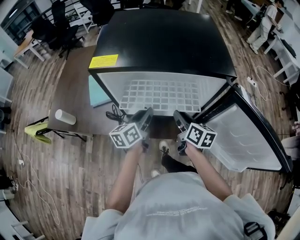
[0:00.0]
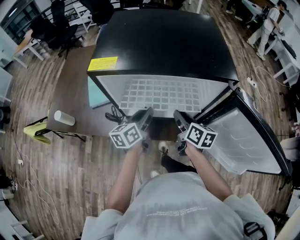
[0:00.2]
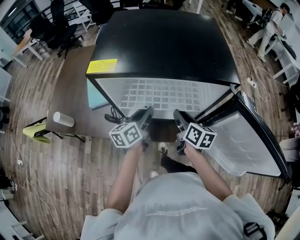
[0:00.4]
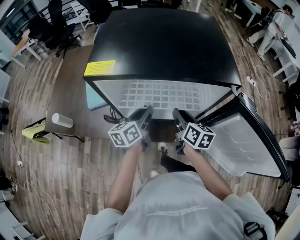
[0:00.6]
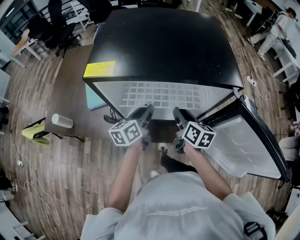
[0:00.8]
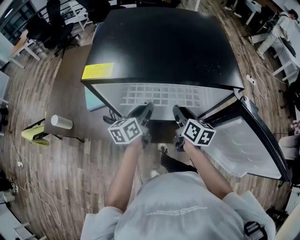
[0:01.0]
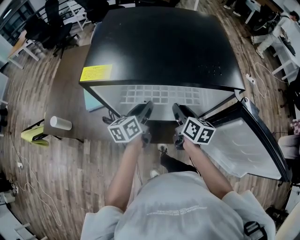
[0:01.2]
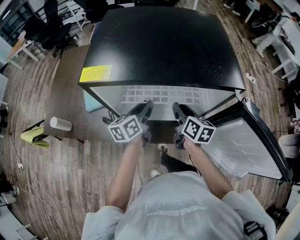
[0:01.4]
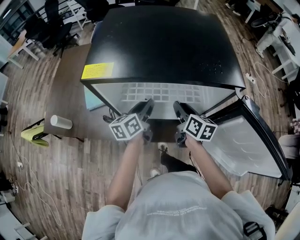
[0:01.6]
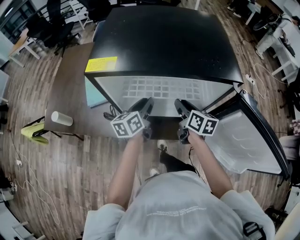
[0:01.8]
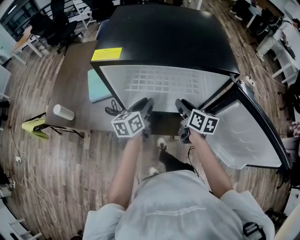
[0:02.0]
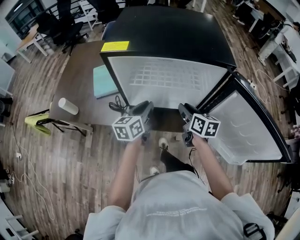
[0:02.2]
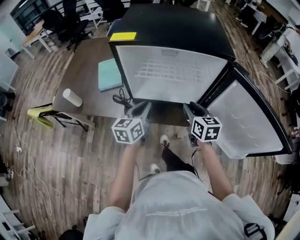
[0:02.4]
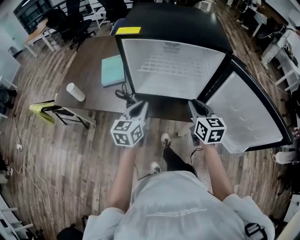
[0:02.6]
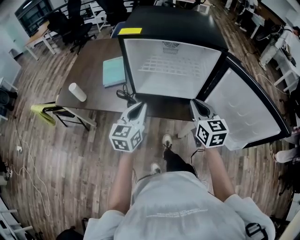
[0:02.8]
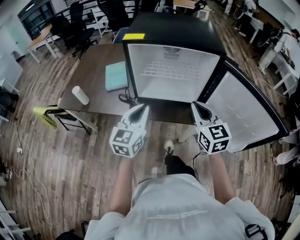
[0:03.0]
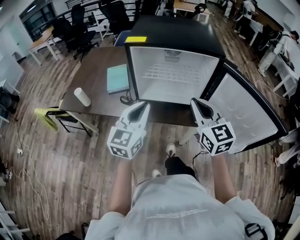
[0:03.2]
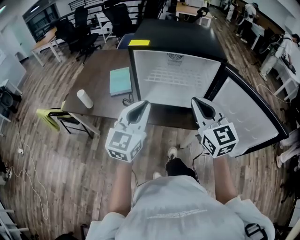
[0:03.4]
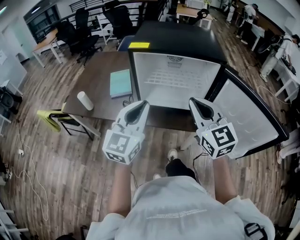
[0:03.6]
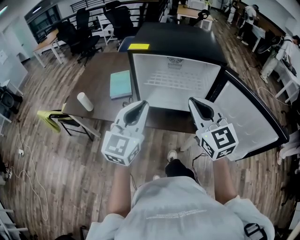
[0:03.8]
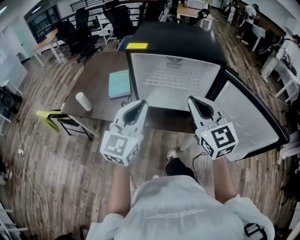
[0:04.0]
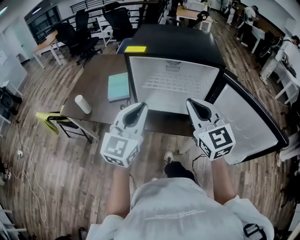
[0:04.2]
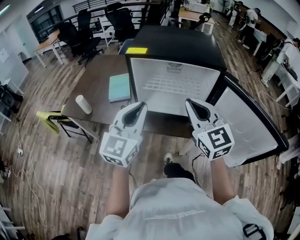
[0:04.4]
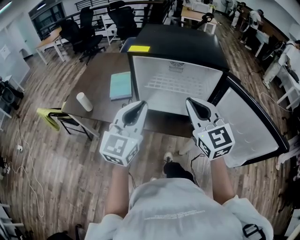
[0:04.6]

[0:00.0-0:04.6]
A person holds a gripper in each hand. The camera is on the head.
0.0 to 1.6 s: Both grippers travel together forward, some 5 cm.
1.6 to 3.0 s: The grippers both shift backward and upward by some 25 cm. The left gripper turns by some 40 degrees, and closes up, while the right gripper rolls counterclockwise, seen from behind, by some 40 degrees, and closes.
3.0 to 4.6 s: Both grippers travel together upward, approximately 10 cm.

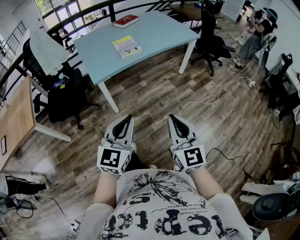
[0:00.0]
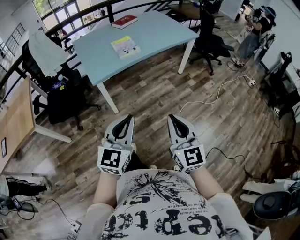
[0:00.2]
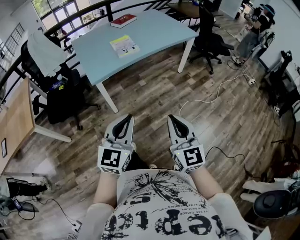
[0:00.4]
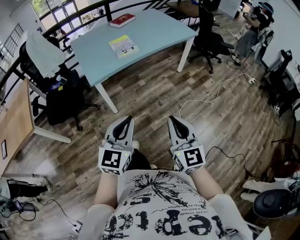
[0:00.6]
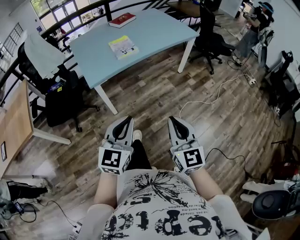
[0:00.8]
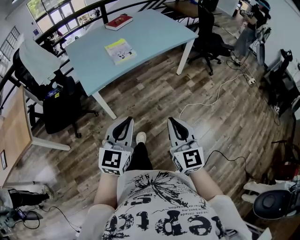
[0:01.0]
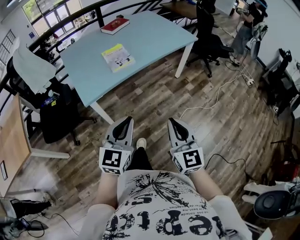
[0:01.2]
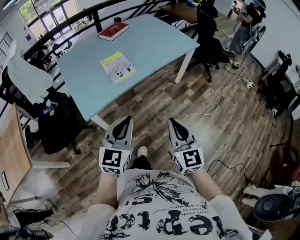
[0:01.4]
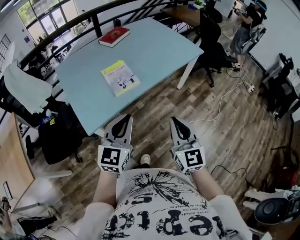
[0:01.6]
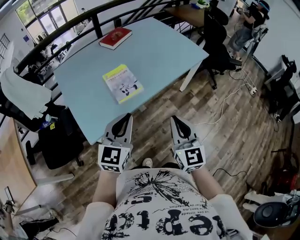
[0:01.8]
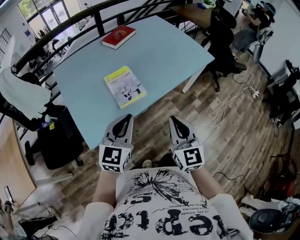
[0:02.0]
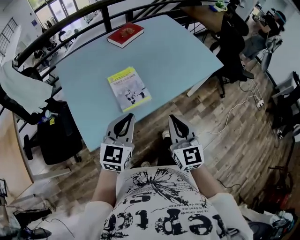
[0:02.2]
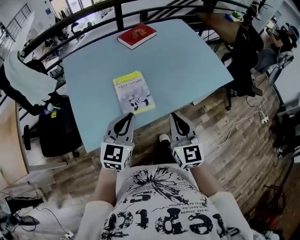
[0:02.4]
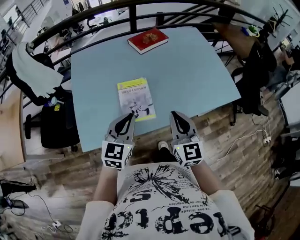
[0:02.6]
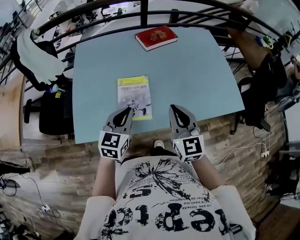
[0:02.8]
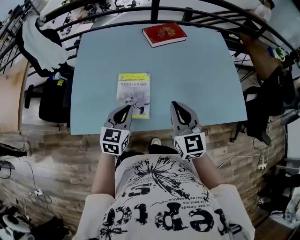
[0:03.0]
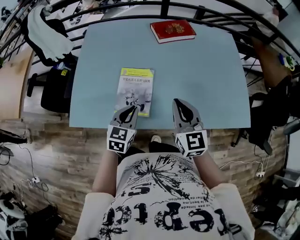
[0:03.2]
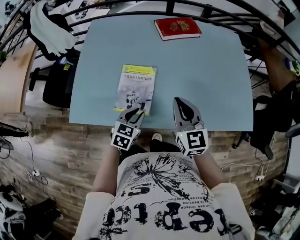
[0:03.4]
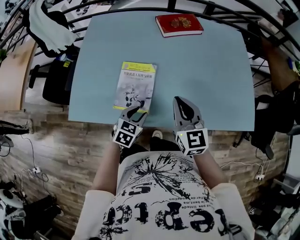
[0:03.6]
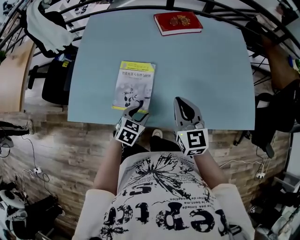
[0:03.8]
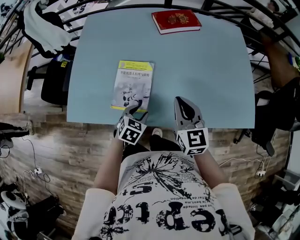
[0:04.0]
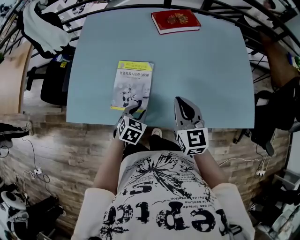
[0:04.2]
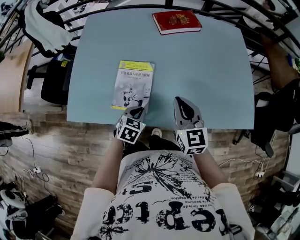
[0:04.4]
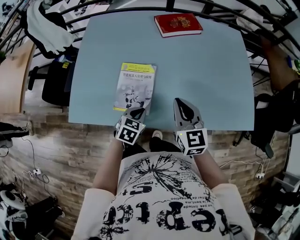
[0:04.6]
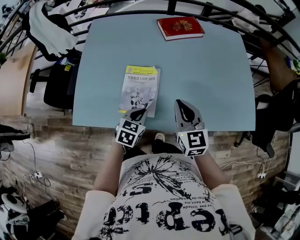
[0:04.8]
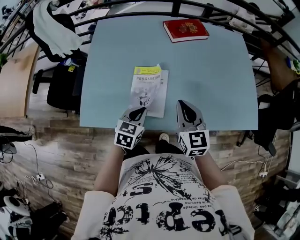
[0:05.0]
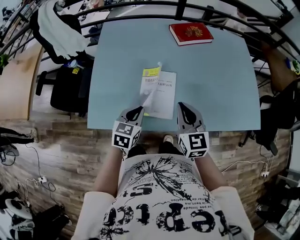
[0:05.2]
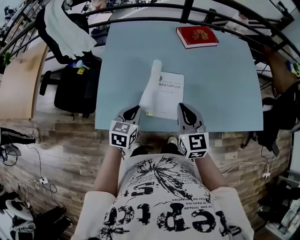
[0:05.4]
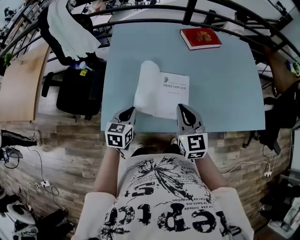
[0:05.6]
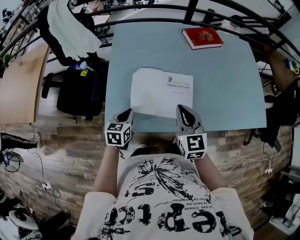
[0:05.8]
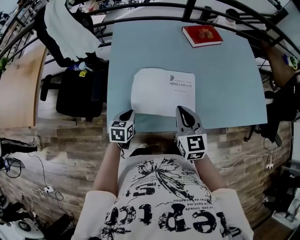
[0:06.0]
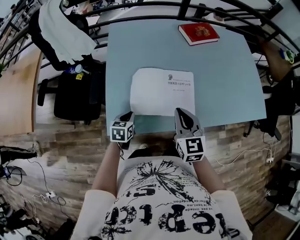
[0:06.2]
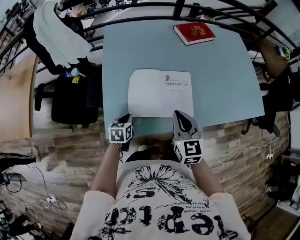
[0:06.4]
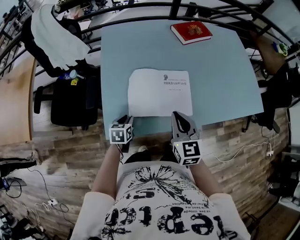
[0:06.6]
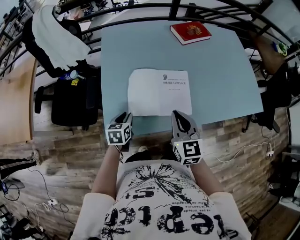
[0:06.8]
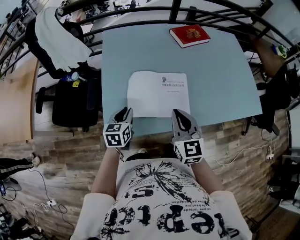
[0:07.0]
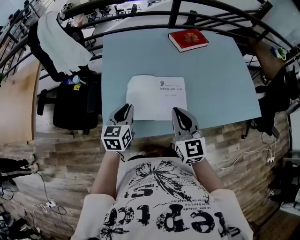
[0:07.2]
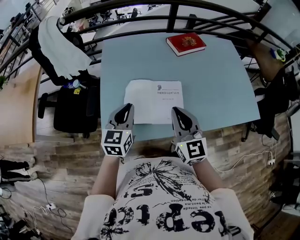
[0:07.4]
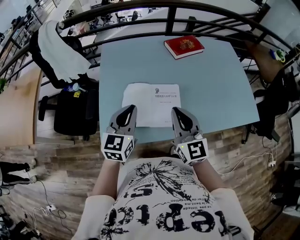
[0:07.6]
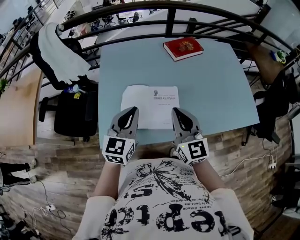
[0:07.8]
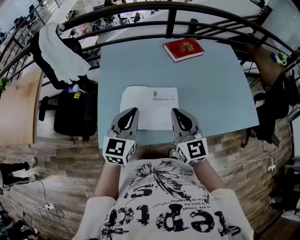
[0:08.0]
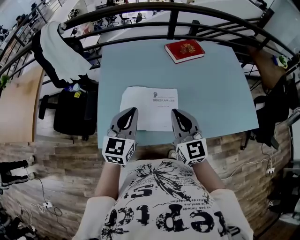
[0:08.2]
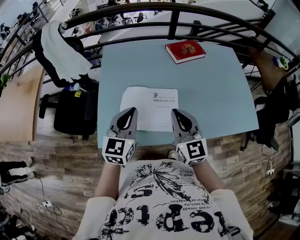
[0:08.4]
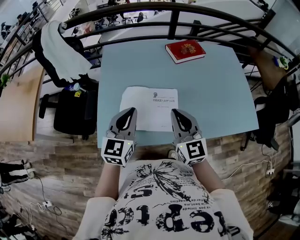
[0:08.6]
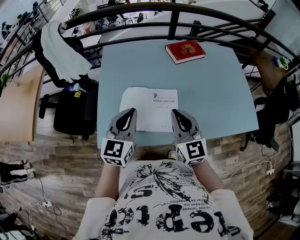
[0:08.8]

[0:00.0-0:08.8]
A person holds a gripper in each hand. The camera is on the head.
0.0 to 1.4 s: The grippers both shift forward by some 25 cm.
1.4 to 3.0 s: The pair of grippers is taken roughly 50 cm. The right gripper swivels roughly 30 degrees, while the left gripper swivels approximately 40 degrees.
3.0 to 4.4 s: The left gripper shifts approximately 15 cm downward and to the right, swivels some 30 degrees, and opens and closes again. The right gripper shifts approximately 5 cm downward.
4.4 to 5.8 s: Both grippers travel together to the left, approximately 30 cm. The left gripper turns by approximately 20 degrees.
5.8 to 7.4 s: The right gripper goes some 5 cm upward. The left gripper goes some 15 cm upward, and turns by approximately 20 degrees.
7.4 to 8.8 s: The left gripper is displaced to the right and upward by roughly 10 cm.

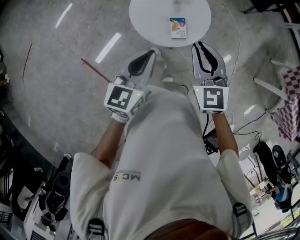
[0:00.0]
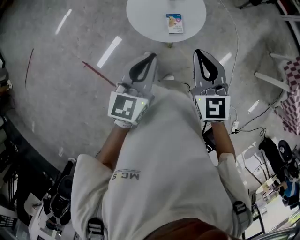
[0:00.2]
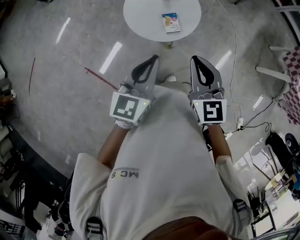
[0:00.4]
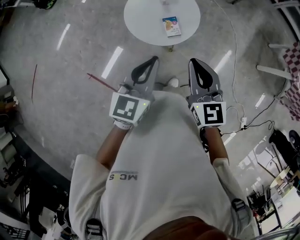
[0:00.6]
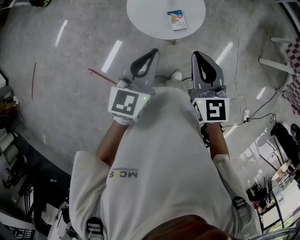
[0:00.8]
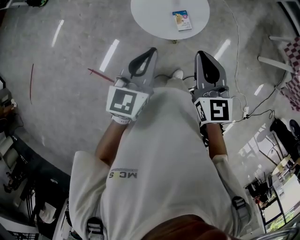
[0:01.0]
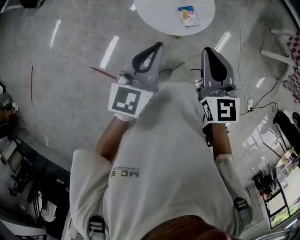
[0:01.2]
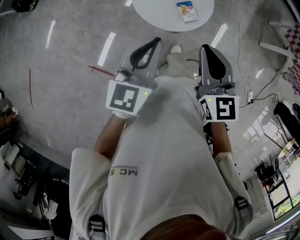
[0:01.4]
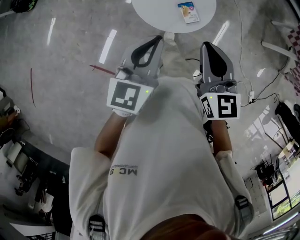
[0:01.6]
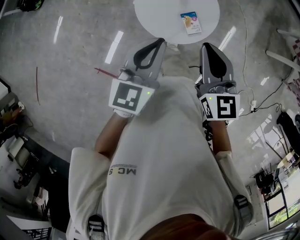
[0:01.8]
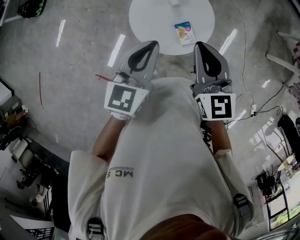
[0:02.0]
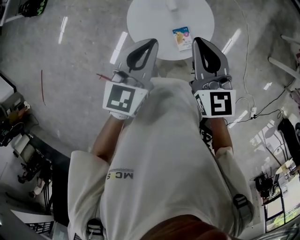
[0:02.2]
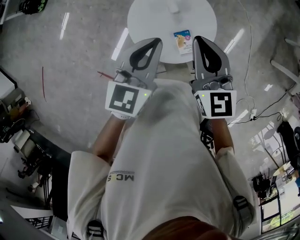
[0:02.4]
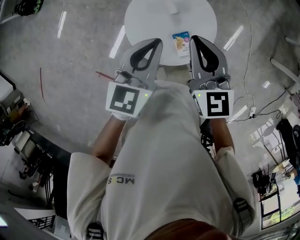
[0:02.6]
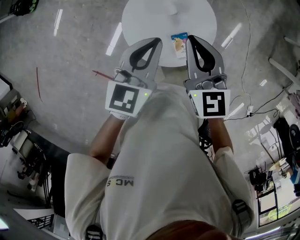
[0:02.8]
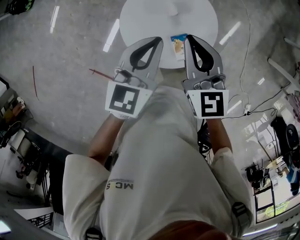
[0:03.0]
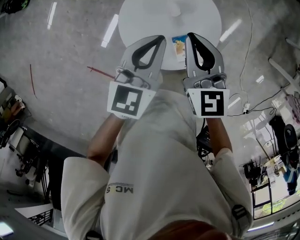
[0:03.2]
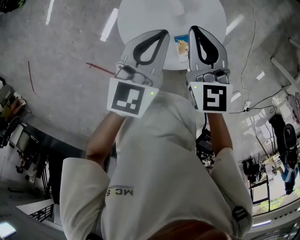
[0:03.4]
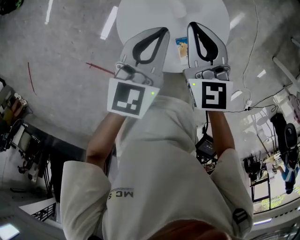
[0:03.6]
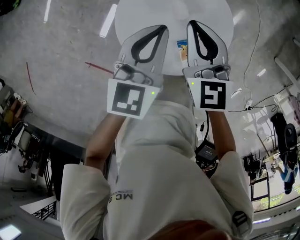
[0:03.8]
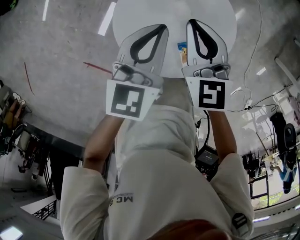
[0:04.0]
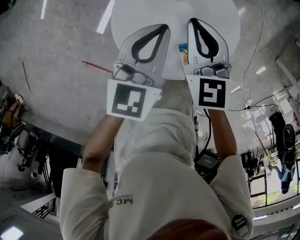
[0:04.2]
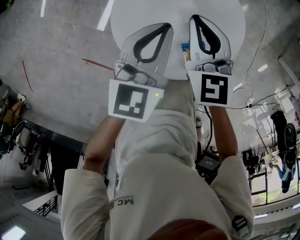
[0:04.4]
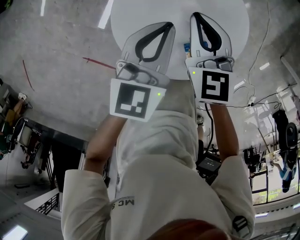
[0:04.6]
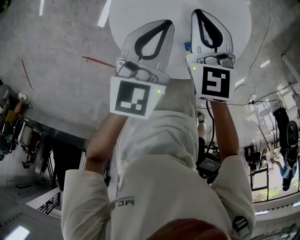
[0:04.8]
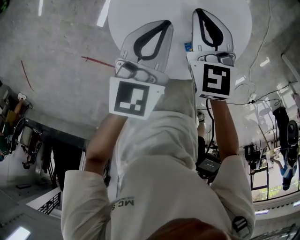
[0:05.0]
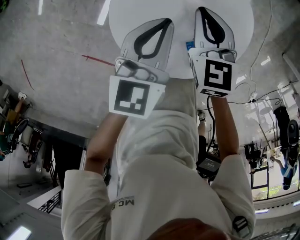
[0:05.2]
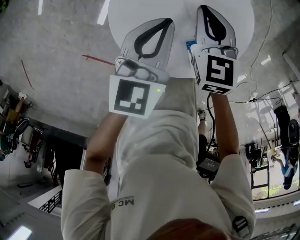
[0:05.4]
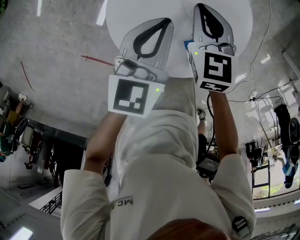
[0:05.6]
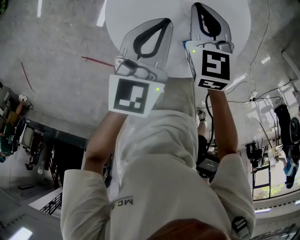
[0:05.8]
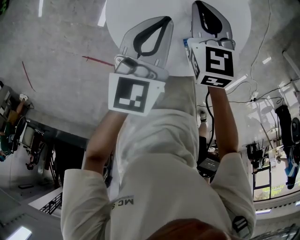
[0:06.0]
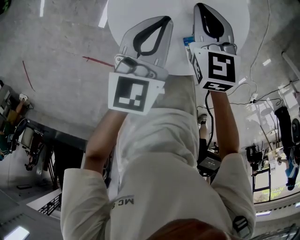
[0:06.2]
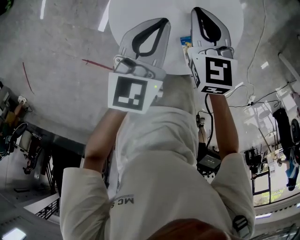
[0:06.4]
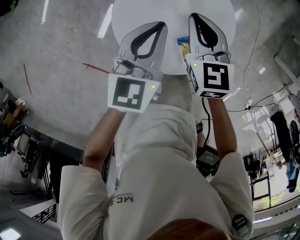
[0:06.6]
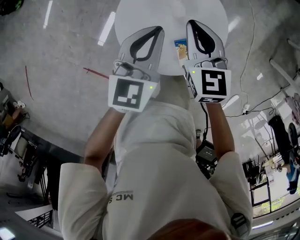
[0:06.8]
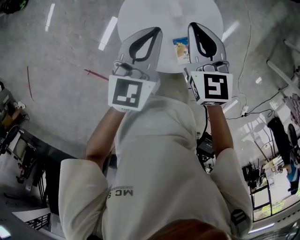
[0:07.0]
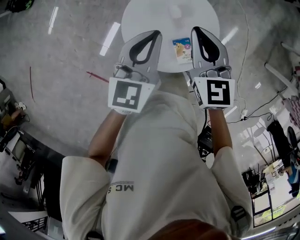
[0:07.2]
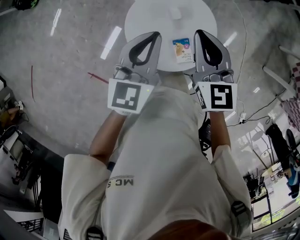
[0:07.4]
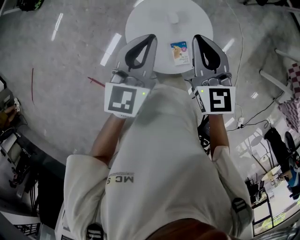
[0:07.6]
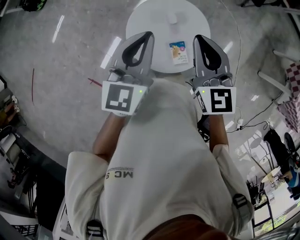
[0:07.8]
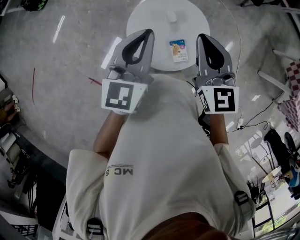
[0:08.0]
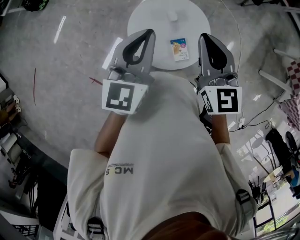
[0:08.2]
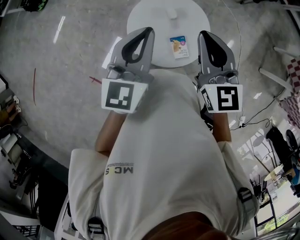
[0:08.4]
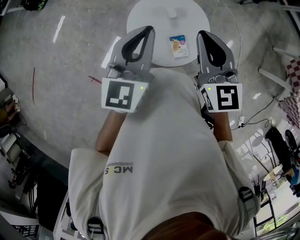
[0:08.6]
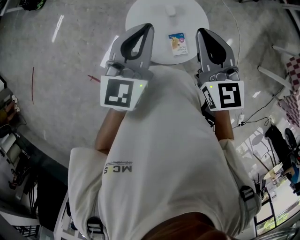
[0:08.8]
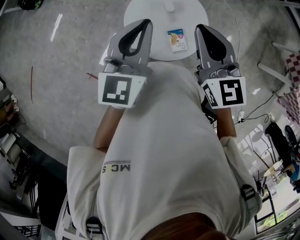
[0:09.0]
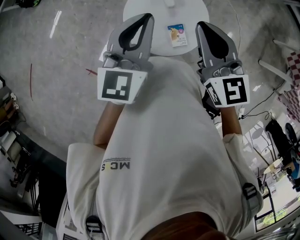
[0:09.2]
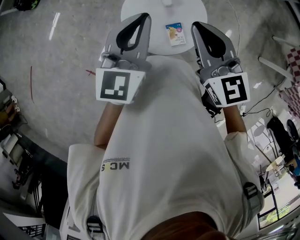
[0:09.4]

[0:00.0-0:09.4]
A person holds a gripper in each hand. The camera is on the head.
0.0 to 1.6 s: Both grippers travel together to the left, roughly 10 cm. The right gripper swivels roughly 20 degrees.
1.6 to 3.2 s: The two grippers go about 40 cm forward and downward.
3.2 to 4.8 s: Both grippers travel together downward and forward, about 25 cm.
4.8 to 6.2 s: The grippers move only a little.
6.2 to 7.8 s: The grippers both shift upward by roughly 40 cm. The left gripper swivels approximately 20 degrees. The right gripper changes its angle by some 30 degrees.
7.8 to 9.4 s: The right gripper heads backward, covering about 5 cm.

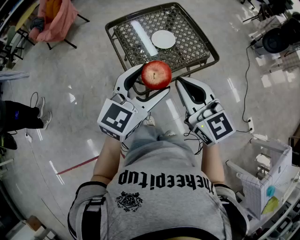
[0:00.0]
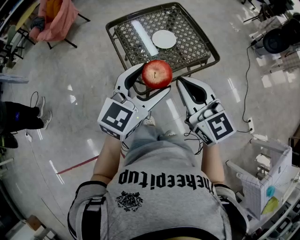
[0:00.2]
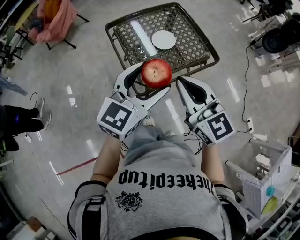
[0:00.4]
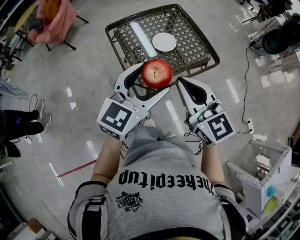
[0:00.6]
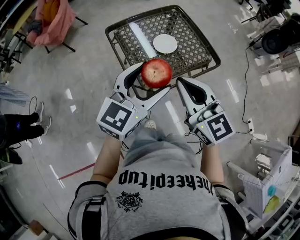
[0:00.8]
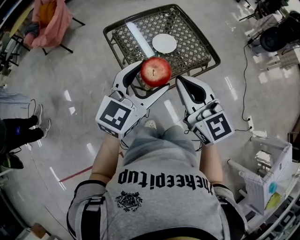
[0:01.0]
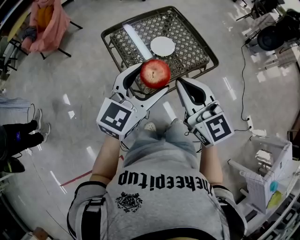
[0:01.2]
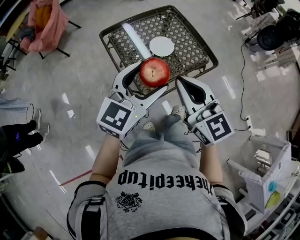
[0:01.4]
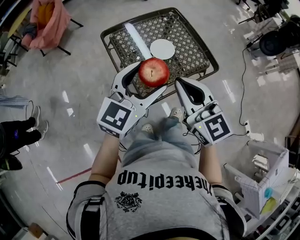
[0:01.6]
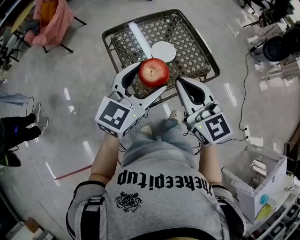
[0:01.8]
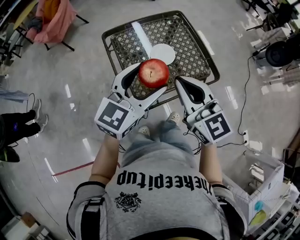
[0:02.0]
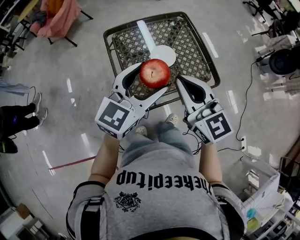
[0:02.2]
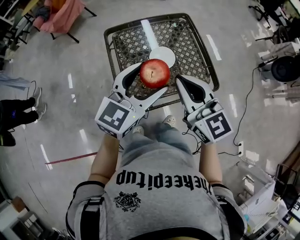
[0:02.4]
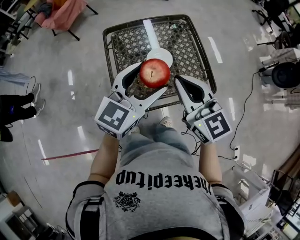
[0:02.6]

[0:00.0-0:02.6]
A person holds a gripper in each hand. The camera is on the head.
0.0 to 1.2 s: The right gripper changes place by about 5 cm. The left gripper shifts about 5 cm forward.
1.2 to 2.6 s: Both grippers travel together forward and to the right, some 15 cm.
